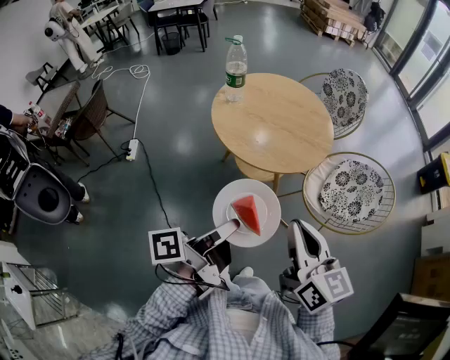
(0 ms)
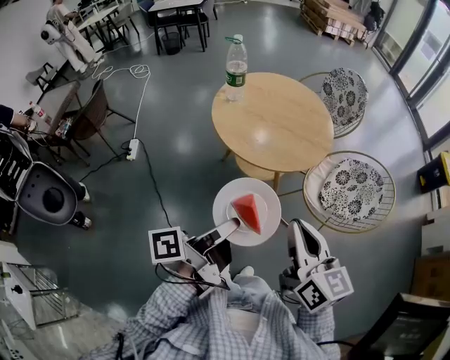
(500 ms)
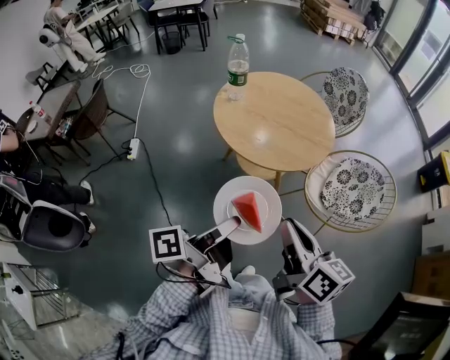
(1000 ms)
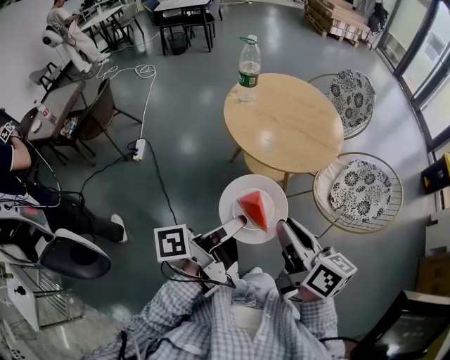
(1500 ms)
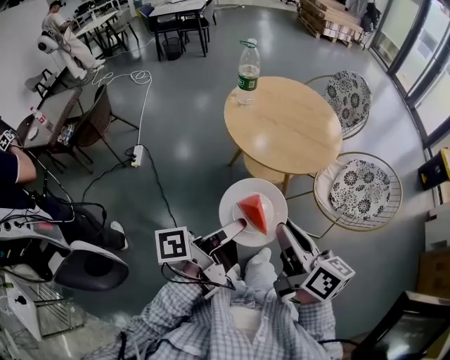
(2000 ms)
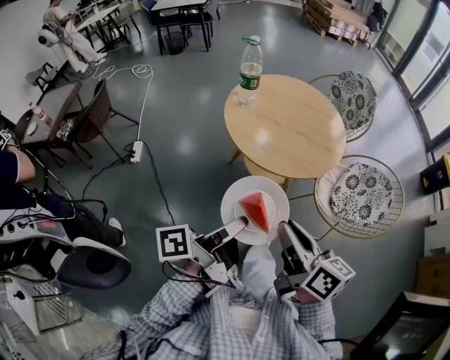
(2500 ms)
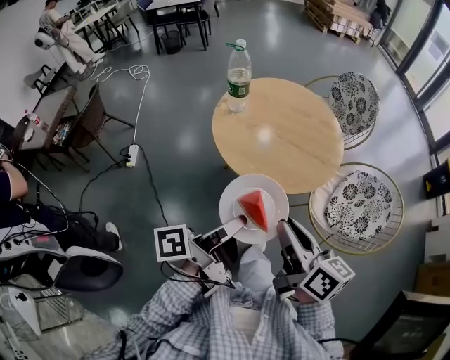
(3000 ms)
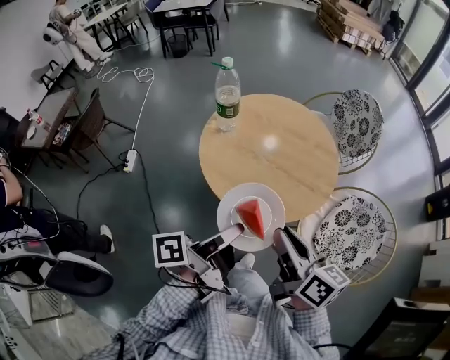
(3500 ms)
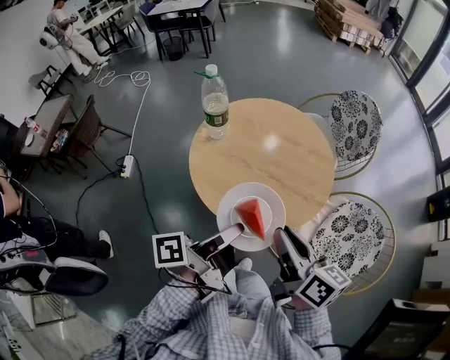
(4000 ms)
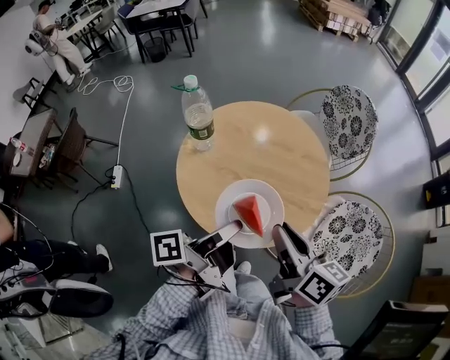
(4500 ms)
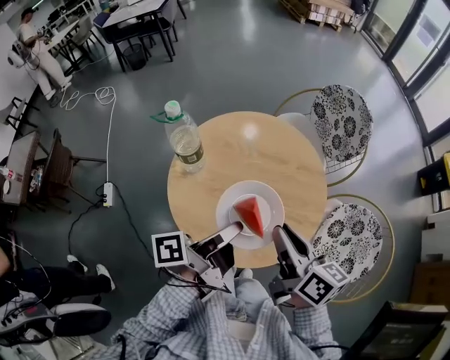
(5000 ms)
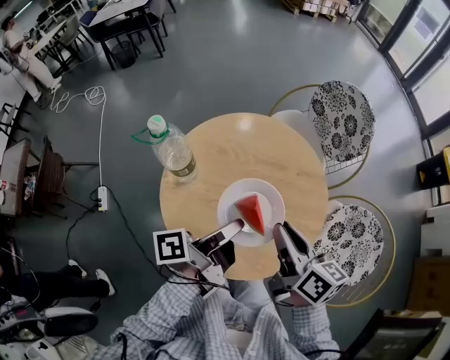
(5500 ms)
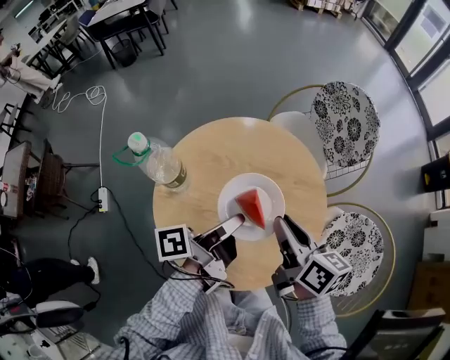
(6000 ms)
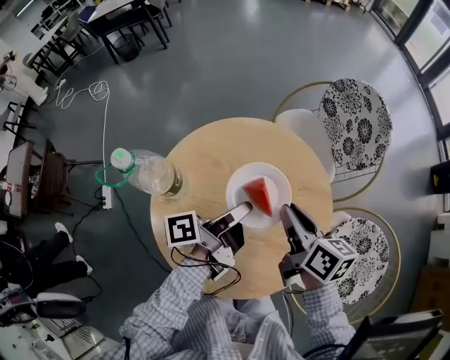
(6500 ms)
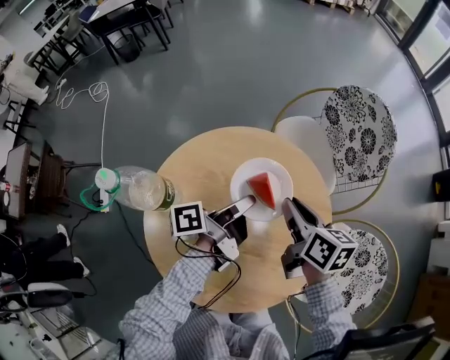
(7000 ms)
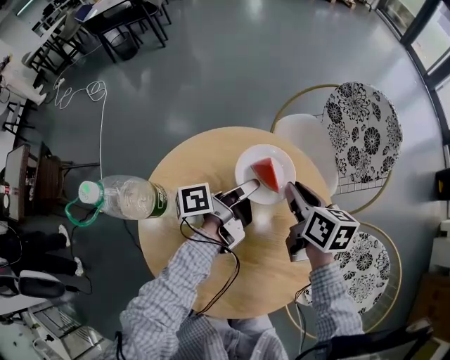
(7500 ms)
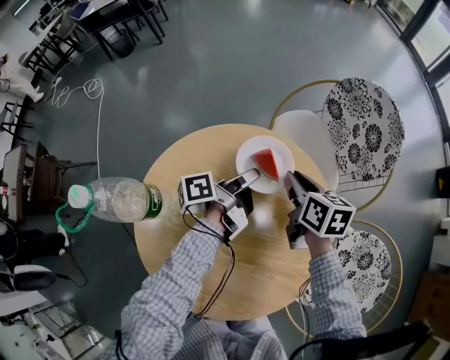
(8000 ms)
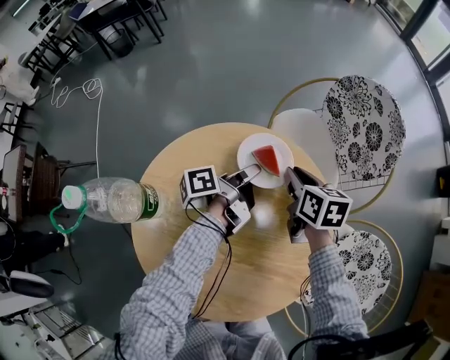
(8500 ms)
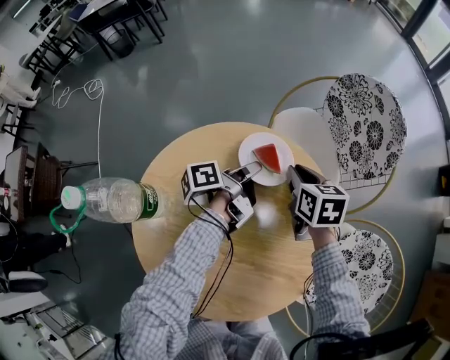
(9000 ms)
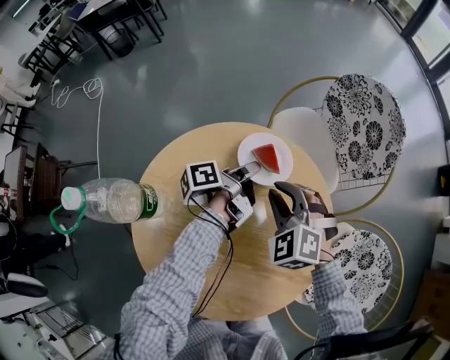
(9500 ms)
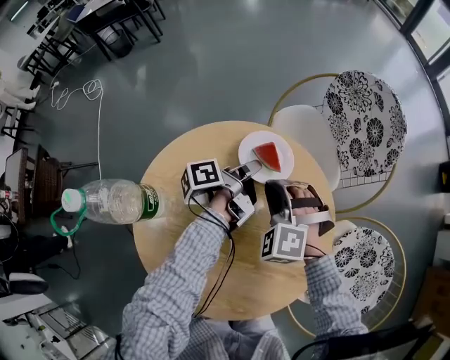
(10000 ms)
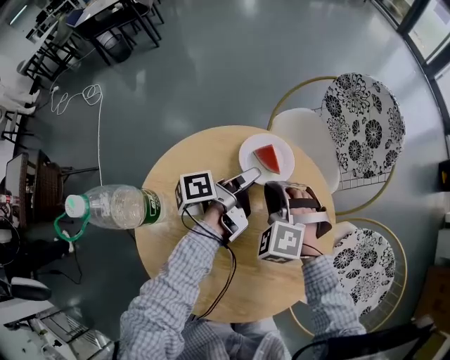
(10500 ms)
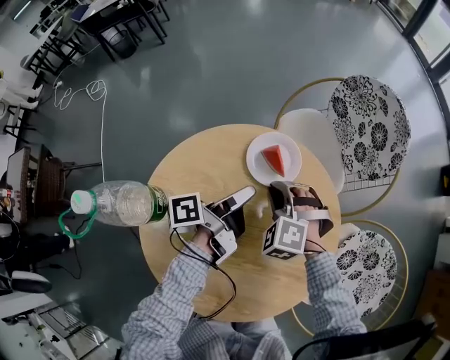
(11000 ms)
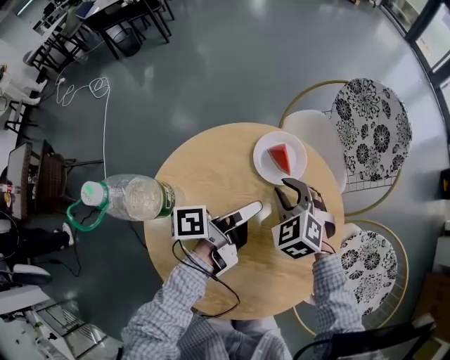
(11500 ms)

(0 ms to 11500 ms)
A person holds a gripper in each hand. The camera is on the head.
0 ms - 2000 ms: The right gripper shifts by roughly 10 cm, and rotates approximately 30 degrees.
2000 ms - 4000 ms: The right gripper changes place by about 25 cm.
4000 ms - 6000 ms: The right gripper shifts by some 25 cm.
6000 ms - 7500 ms: The right gripper moves roughly 20 cm.
7500 ms - 9500 ms: The right gripper shifts by about 5 cm, and rotates around the line of its fingers by roughly 80 degrees, counterclockwise from behind.

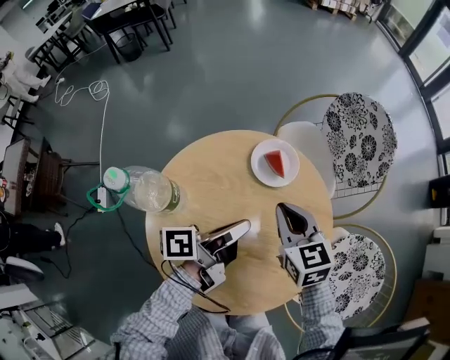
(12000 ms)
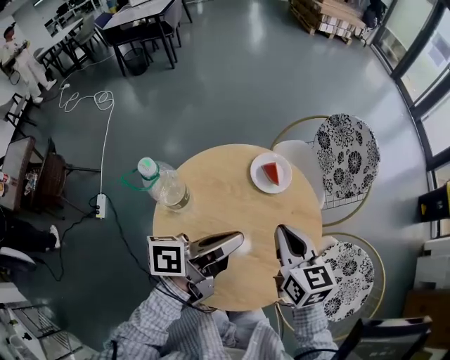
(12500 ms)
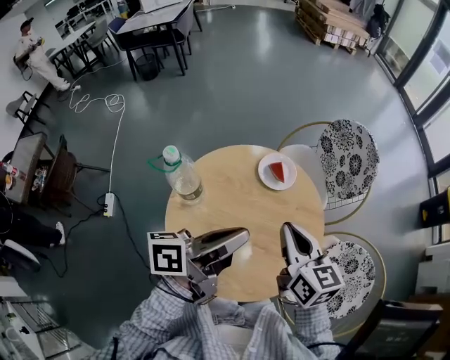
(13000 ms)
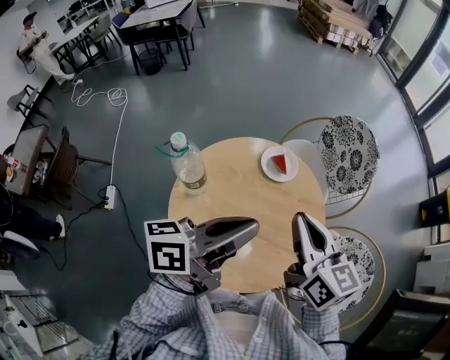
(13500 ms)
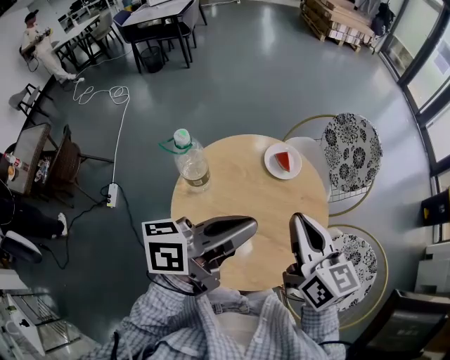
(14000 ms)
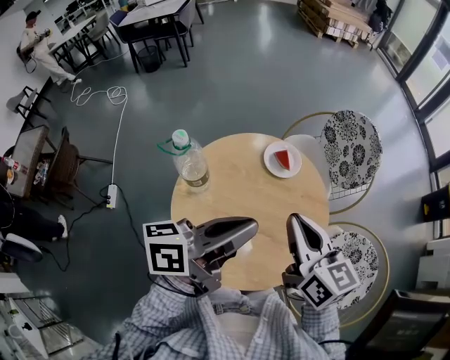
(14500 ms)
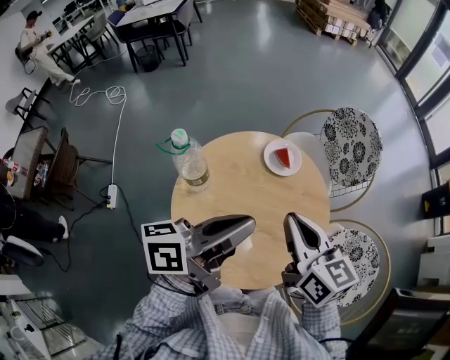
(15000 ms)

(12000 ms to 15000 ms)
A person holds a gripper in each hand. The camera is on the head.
12000 ms - 13500 ms: The right gripper goes some 20 cm upward, and turns by some 20 degrees.

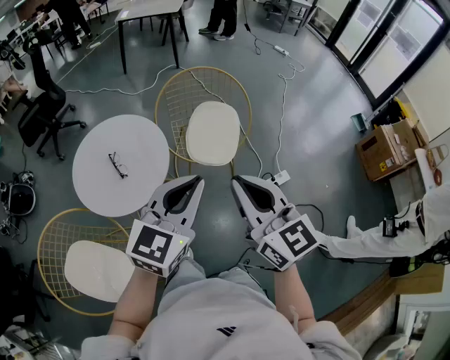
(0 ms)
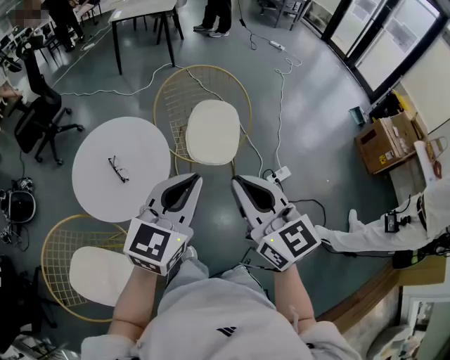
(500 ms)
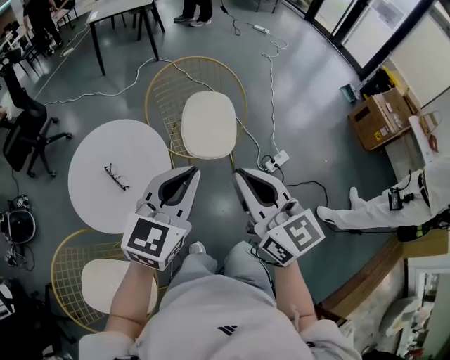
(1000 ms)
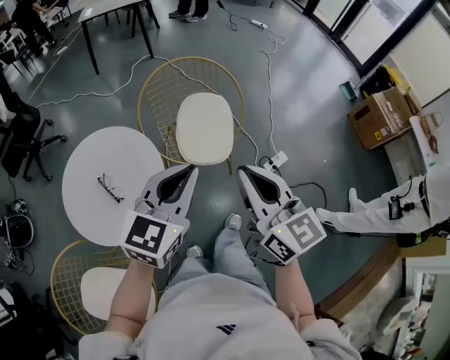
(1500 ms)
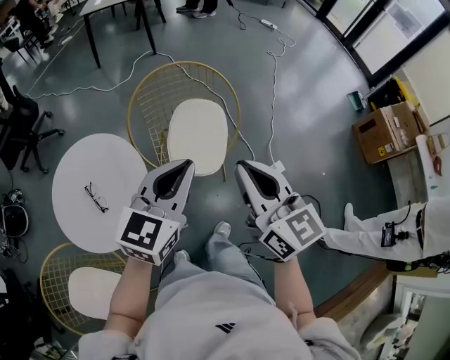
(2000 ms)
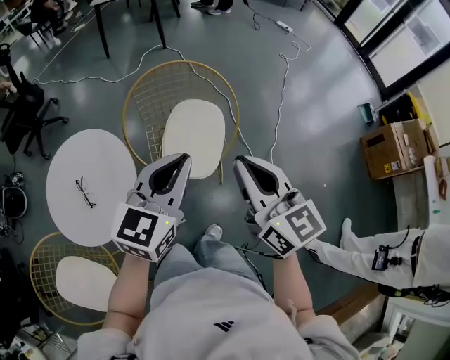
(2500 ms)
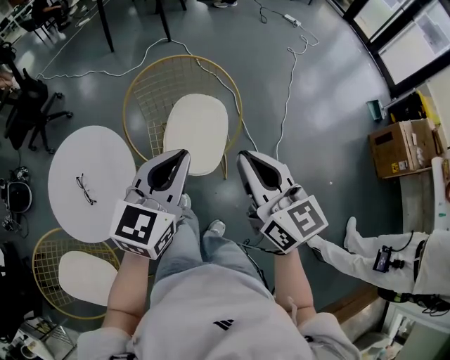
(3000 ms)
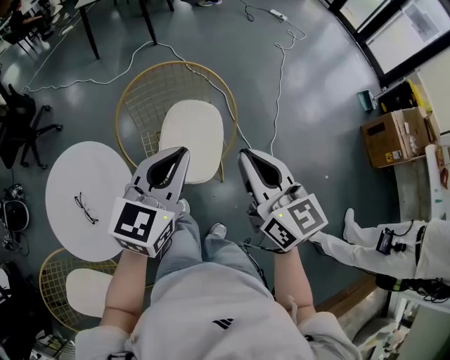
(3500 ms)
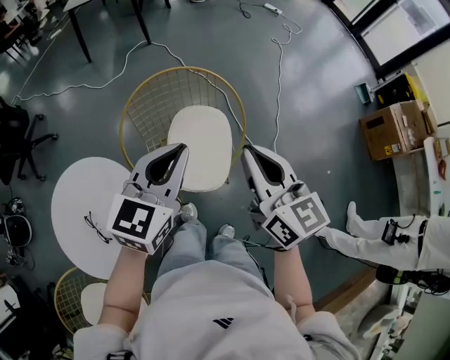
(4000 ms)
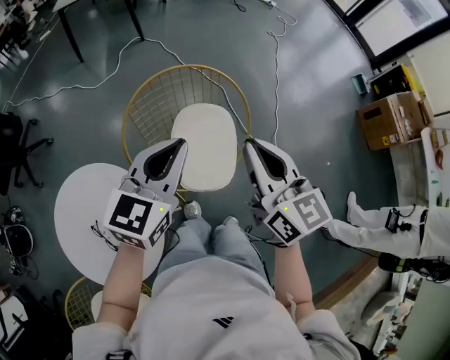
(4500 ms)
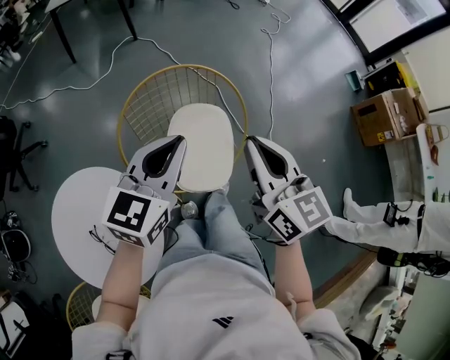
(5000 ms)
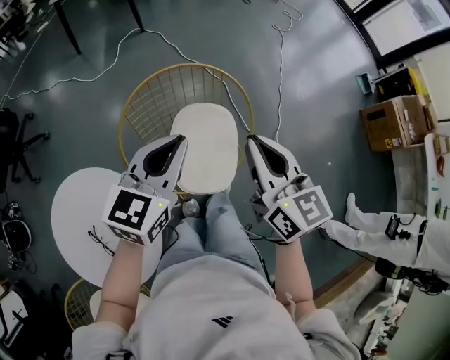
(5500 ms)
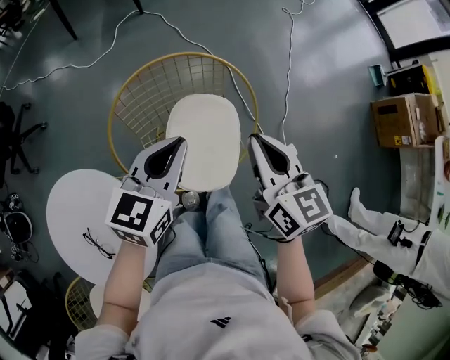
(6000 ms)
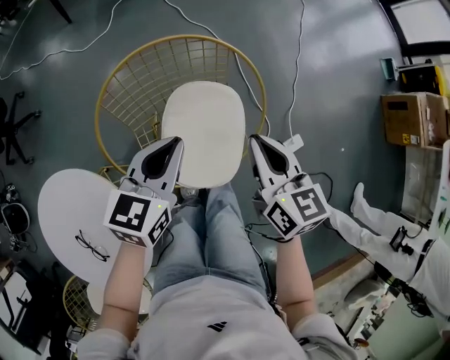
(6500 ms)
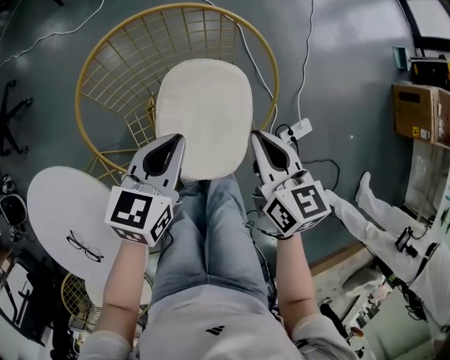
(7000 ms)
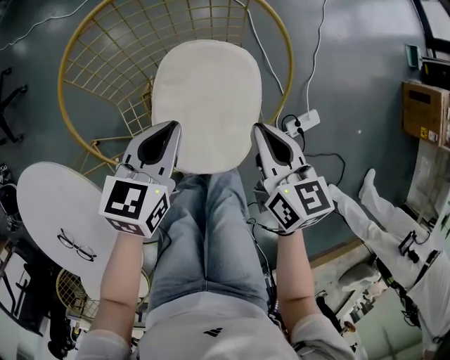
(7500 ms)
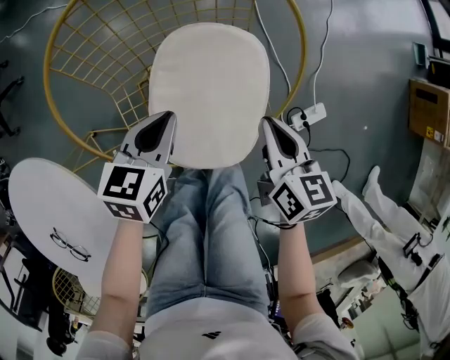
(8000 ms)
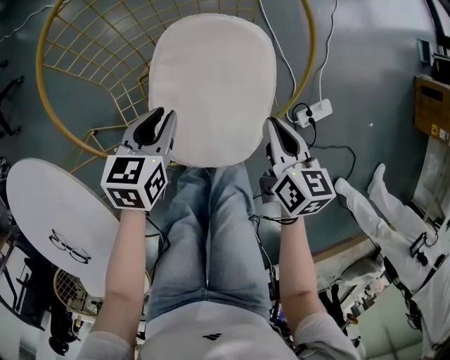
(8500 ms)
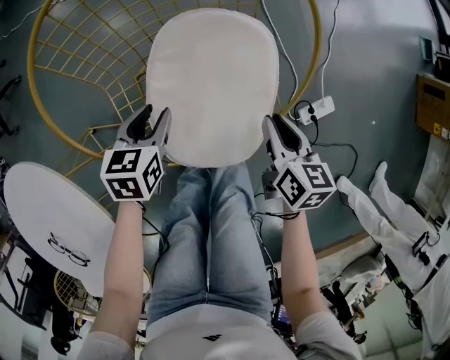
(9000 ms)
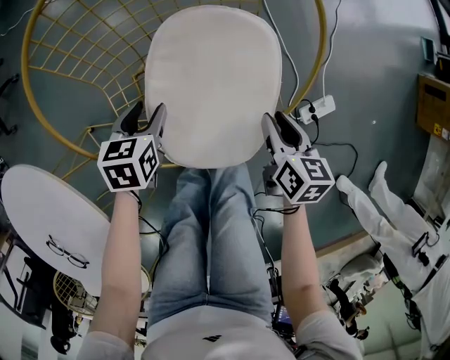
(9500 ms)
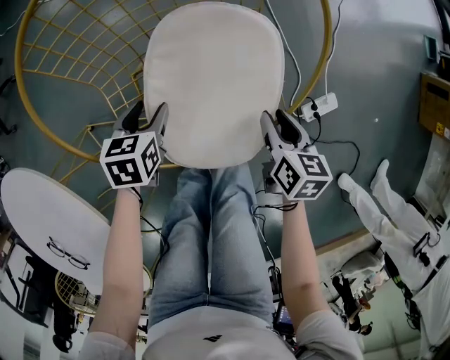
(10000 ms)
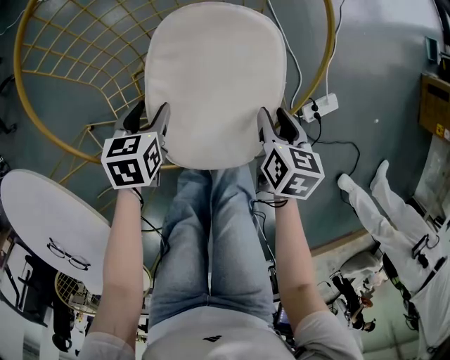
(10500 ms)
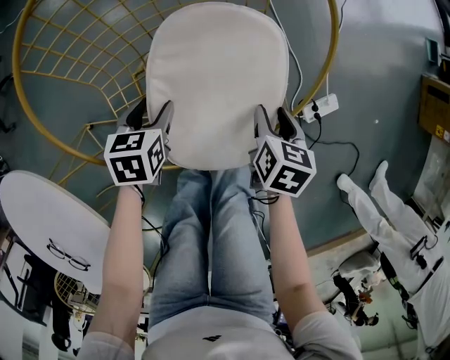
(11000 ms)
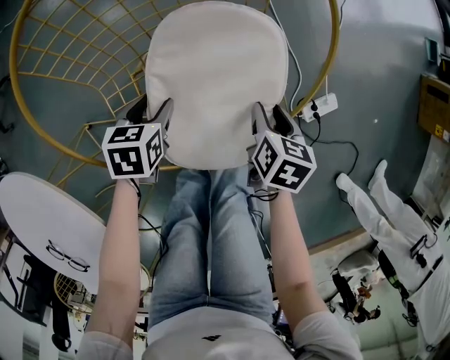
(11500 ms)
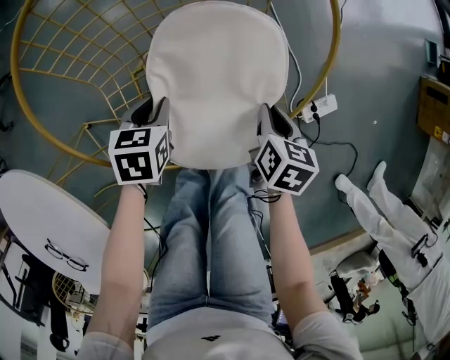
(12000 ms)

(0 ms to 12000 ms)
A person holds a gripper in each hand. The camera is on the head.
0 ms - 2000 ms: The grippers both shift forward by about 20 cm.
2000 ms - 4000 ms: Both grippers move forward, some 15 cm.
4000 ms - 6000 ms: Both grippers travel together forward and downward, about 15 cm.
6000 ms - 8000 ms: Both grippers travel together downward, some 30 cm. The left gripper rotates approximately 20 degrees.
8000 ms - 10000 ms: The left gripper goes roughly 15 cm downward and to the left, and opens up. The right gripper goes about 15 cm downward, and opens.
10000 ms - 12000 ms: The left gripper closes.

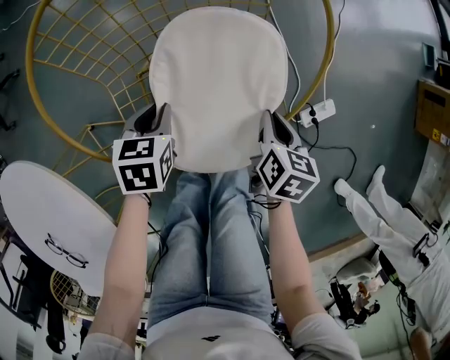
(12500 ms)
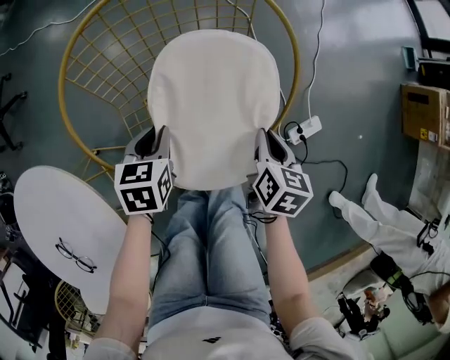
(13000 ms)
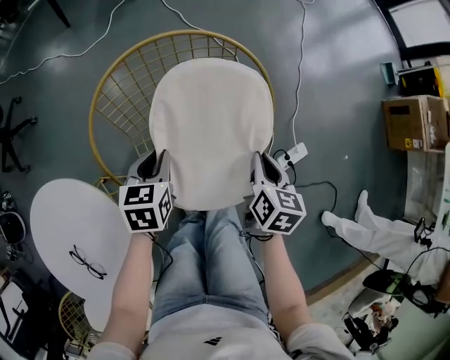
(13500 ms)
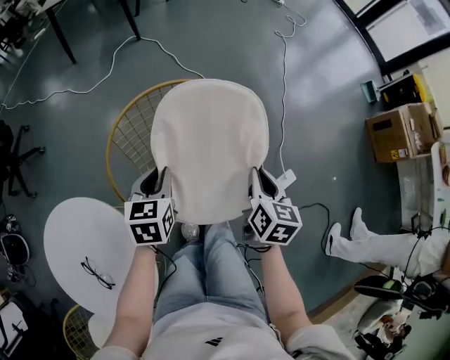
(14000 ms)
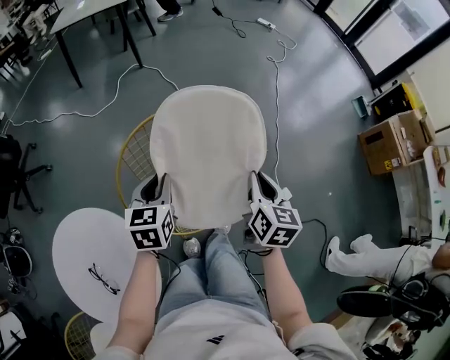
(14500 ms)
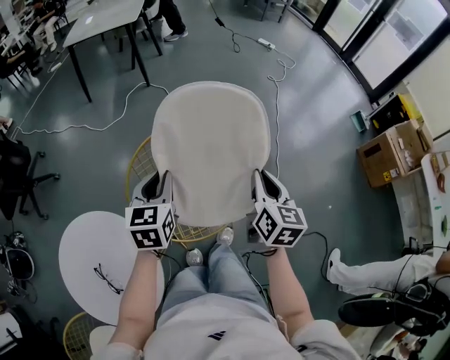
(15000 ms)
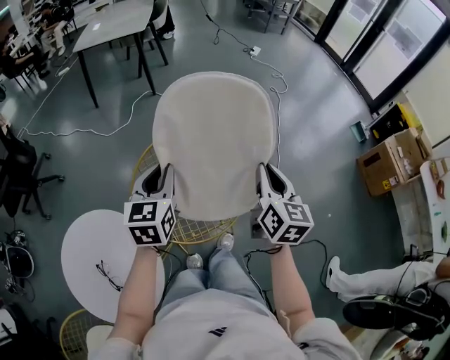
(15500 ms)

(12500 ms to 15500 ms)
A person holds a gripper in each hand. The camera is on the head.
12500 ms - 14000 ms: The grippers both shift upward by roughly 25 cm.
14000 ms - 15500 ms: The grippers both shift upward by approximately 20 cm. The left gripper rotates approximately 20 degrees. Meanwhile the right gripper swivels some 20 degrees.
